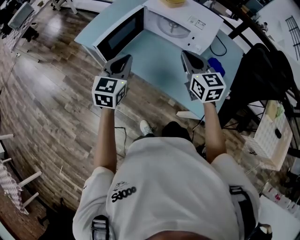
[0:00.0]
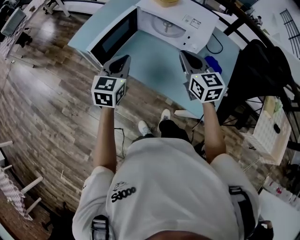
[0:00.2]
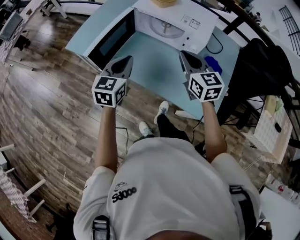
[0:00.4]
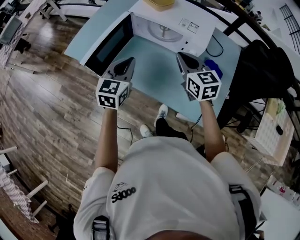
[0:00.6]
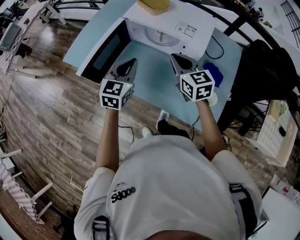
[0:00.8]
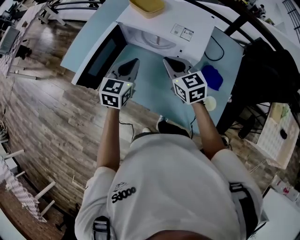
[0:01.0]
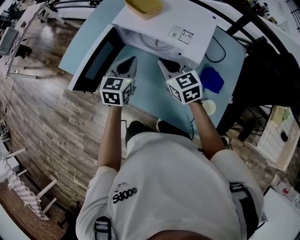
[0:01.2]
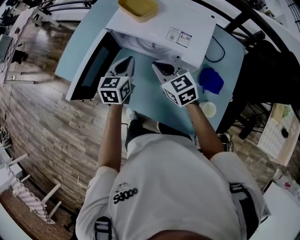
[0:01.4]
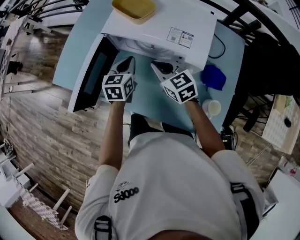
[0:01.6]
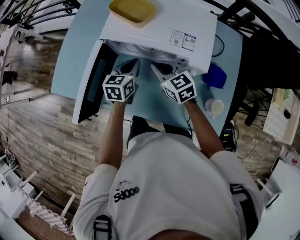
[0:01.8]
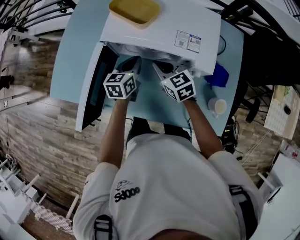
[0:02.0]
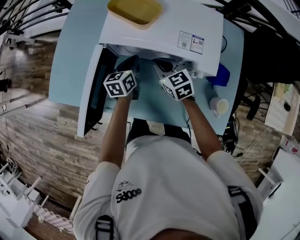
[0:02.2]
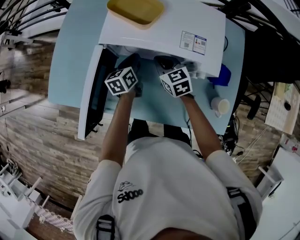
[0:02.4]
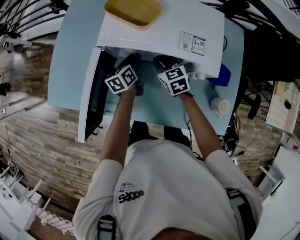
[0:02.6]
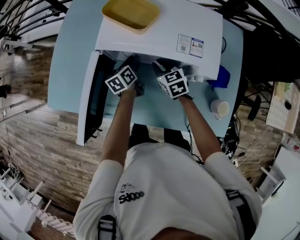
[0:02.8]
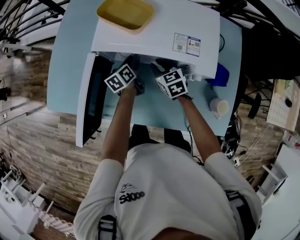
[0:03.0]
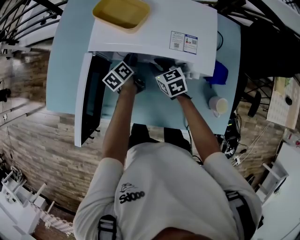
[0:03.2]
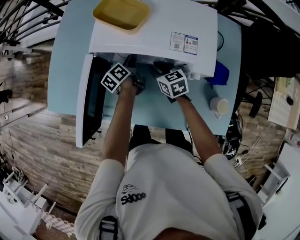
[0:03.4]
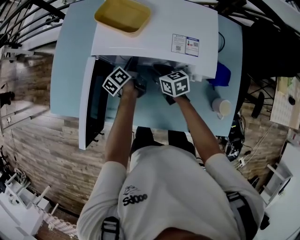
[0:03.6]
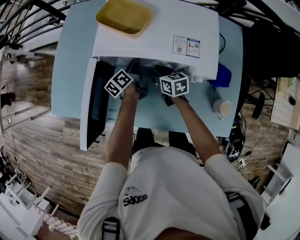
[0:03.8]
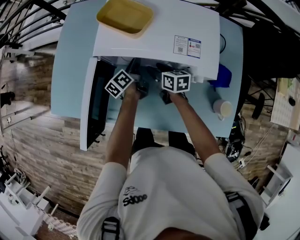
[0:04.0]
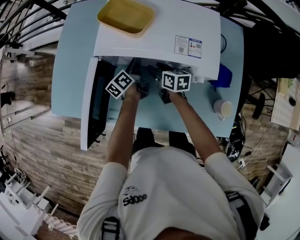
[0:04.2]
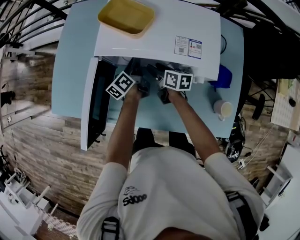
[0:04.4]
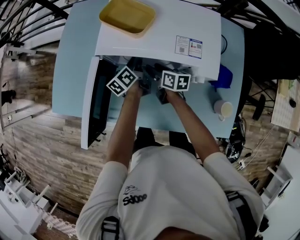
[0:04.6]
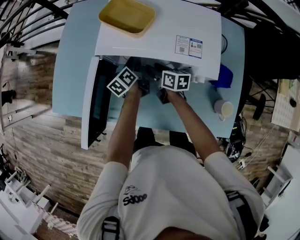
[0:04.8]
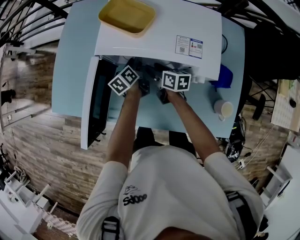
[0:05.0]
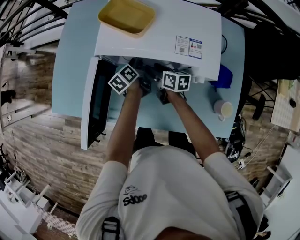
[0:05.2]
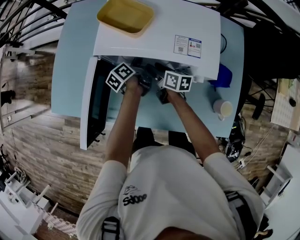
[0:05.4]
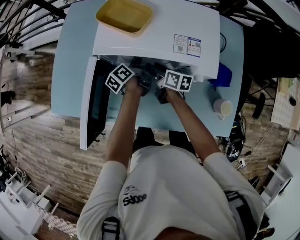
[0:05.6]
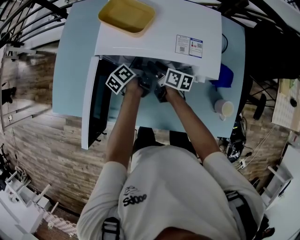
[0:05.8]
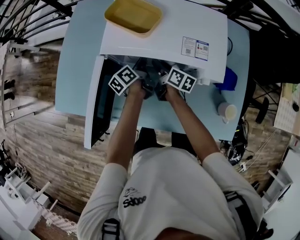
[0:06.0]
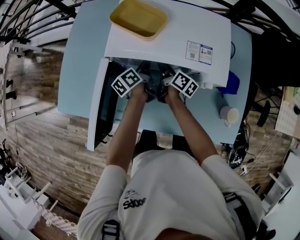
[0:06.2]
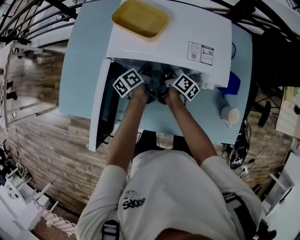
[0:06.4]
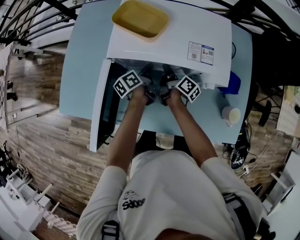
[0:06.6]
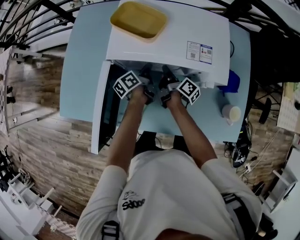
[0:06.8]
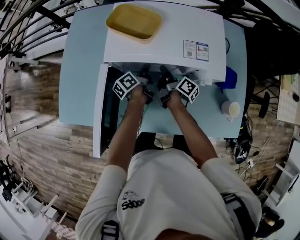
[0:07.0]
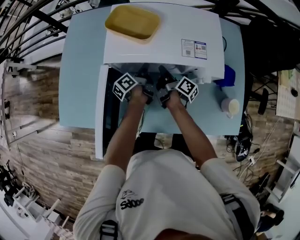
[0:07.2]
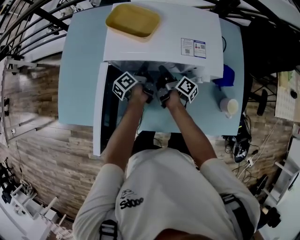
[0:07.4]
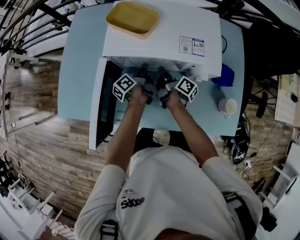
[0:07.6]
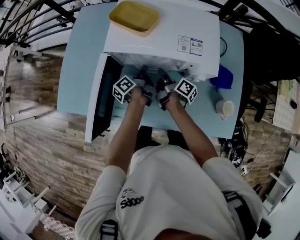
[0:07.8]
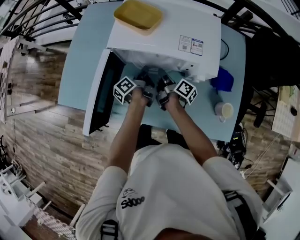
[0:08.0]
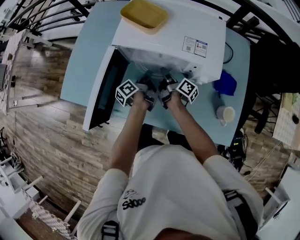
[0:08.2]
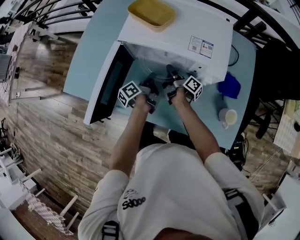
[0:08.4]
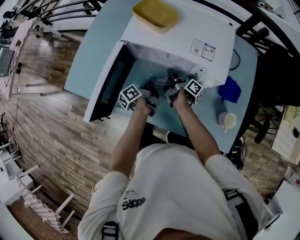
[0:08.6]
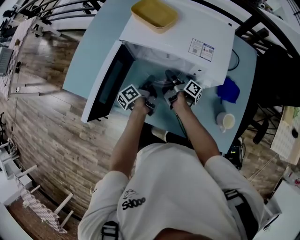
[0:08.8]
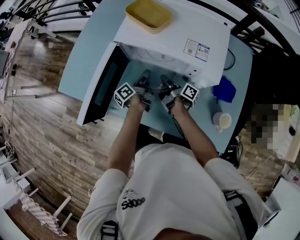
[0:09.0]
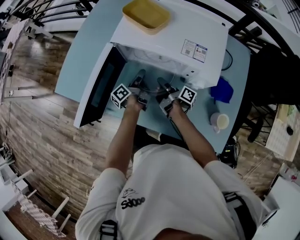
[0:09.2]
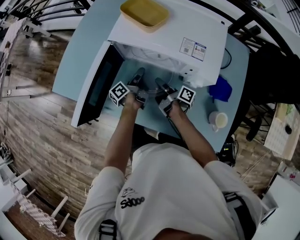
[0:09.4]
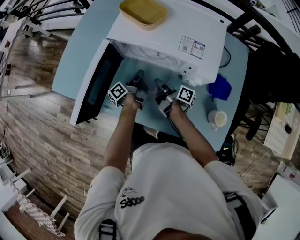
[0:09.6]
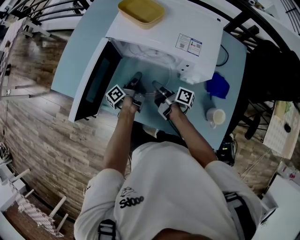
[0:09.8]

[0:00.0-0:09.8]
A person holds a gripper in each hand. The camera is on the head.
0:00.0 to 0:01.4: The right gripper shifts roughly 20 cm forward and downward; the left gripper heads forward and to the right, covering roughly 25 cm.
0:01.4 to 0:02.8: The two grippers go roughly 20 cm downward and forward. The left gripper changes its angle by about 30 degrees, and opens, while the right gripper rotates about 20 degrees.
0:02.8 to 0:04.2: The right gripper rotates about 40 degrees, and opens. Meanwhile the left gripper rotates approximately 20 degrees.
0:04.2 to 0:05.6: There are only small adjustments of the grippers.
0:05.6 to 0:07.0: The right gripper swivels some 40 degrees, and closes its fingers.
0:07.0 to 0:08.4: The left gripper shifts about 10 cm backward.
0:08.4 to 0:09.8: The right gripper shifts about 10 cm backward, and swivels roughly 20 degrees; the left gripper opens, then closes once more.

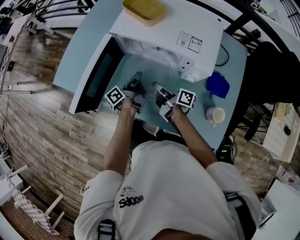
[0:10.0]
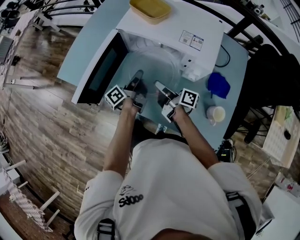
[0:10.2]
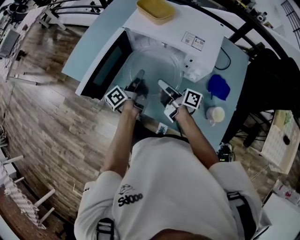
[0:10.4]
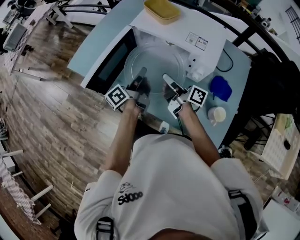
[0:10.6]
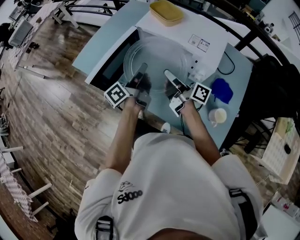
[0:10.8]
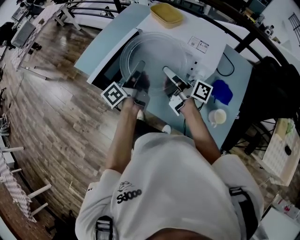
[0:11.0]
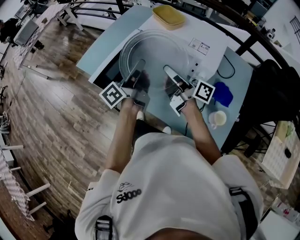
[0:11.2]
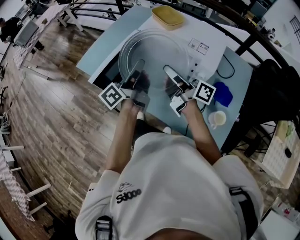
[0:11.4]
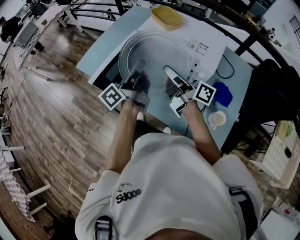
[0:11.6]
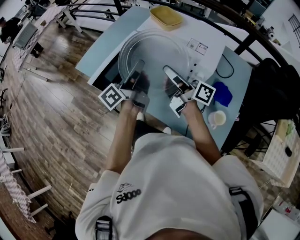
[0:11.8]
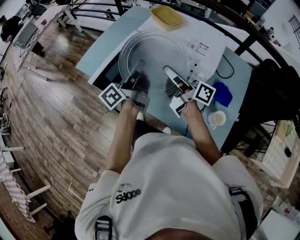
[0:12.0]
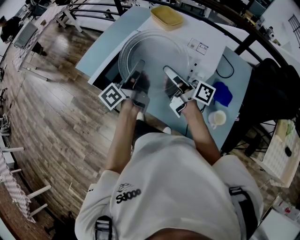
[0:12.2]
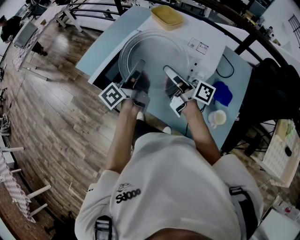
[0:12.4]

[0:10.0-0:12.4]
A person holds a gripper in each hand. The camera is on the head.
0:10.0 to 0:11.2: The right gripper is displaced upward by some 20 cm, and rotates approximately 20 degrees. The left gripper heads upward and backward, covering about 25 cm, and changes its angle by some 30 degrees.
0:11.2 to 0:12.4: The grippers stay close to where they were, moving slightly.

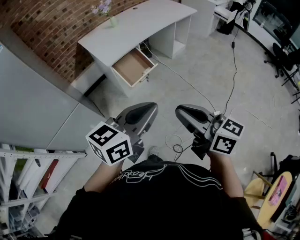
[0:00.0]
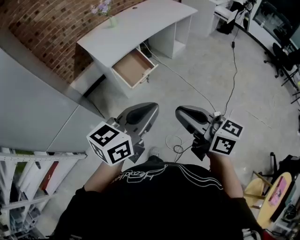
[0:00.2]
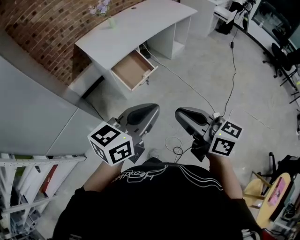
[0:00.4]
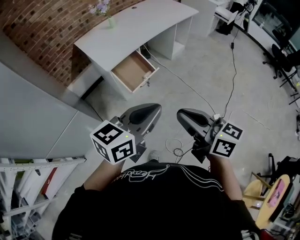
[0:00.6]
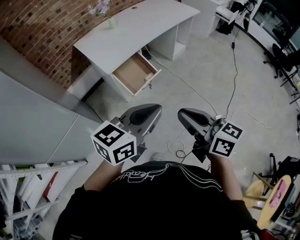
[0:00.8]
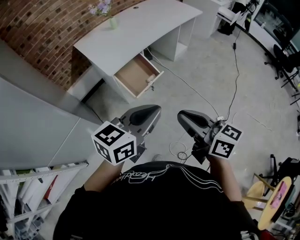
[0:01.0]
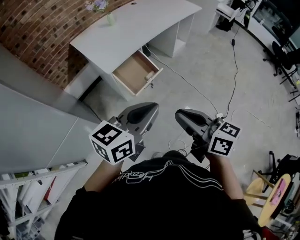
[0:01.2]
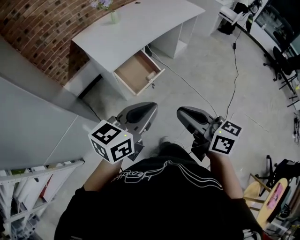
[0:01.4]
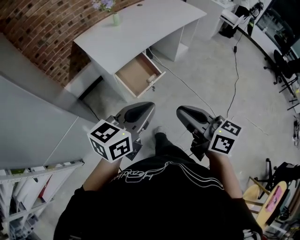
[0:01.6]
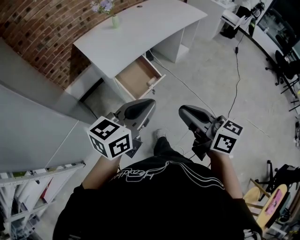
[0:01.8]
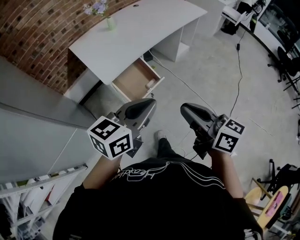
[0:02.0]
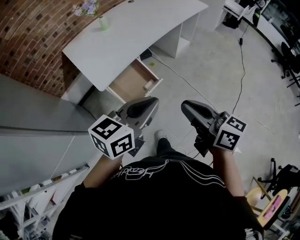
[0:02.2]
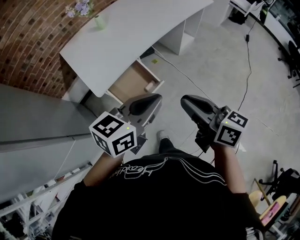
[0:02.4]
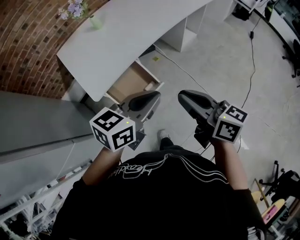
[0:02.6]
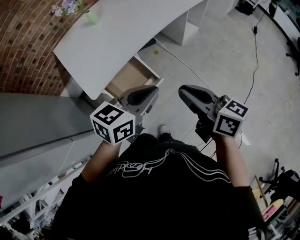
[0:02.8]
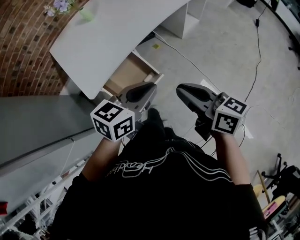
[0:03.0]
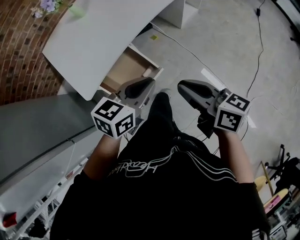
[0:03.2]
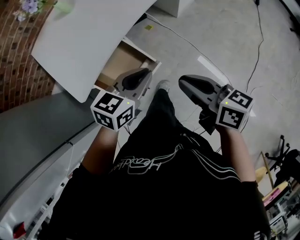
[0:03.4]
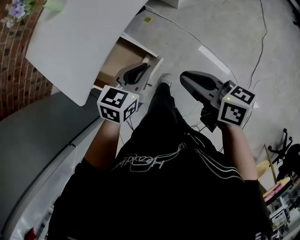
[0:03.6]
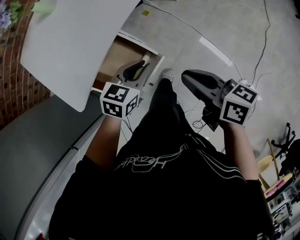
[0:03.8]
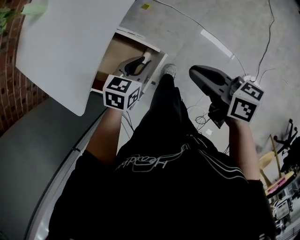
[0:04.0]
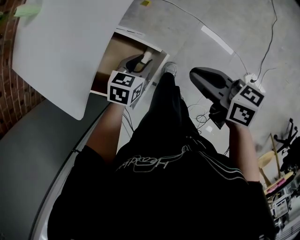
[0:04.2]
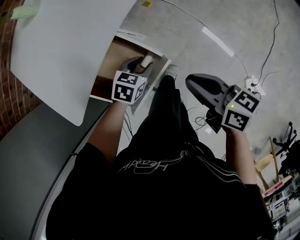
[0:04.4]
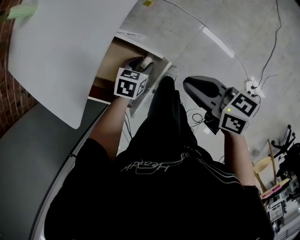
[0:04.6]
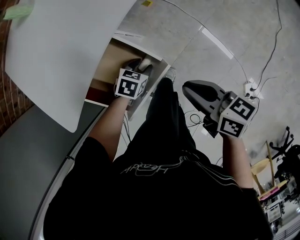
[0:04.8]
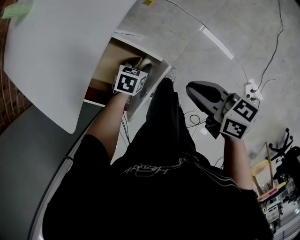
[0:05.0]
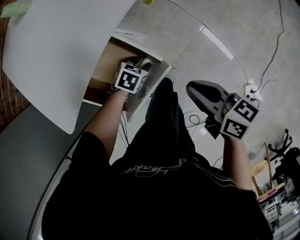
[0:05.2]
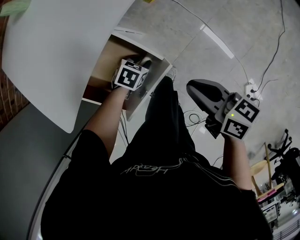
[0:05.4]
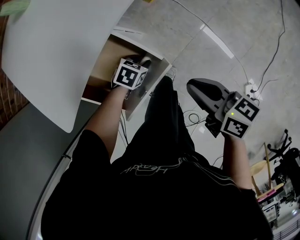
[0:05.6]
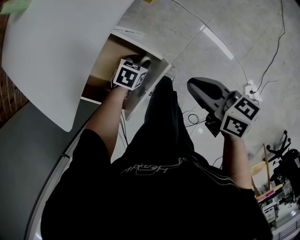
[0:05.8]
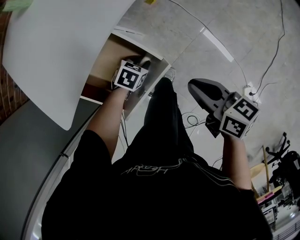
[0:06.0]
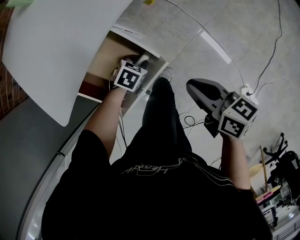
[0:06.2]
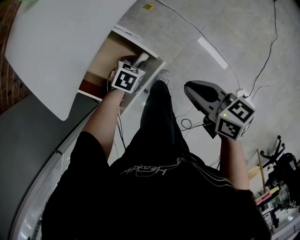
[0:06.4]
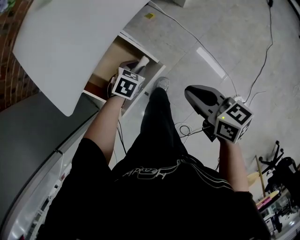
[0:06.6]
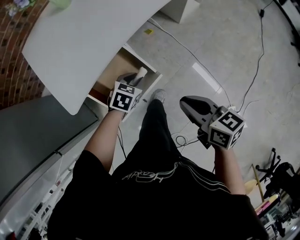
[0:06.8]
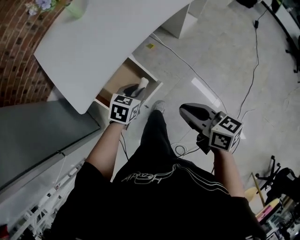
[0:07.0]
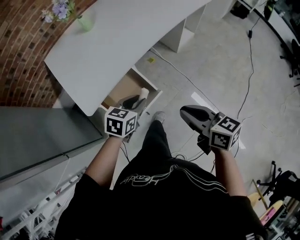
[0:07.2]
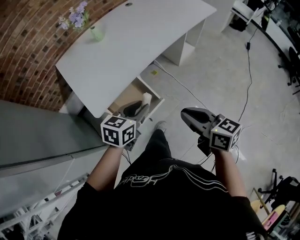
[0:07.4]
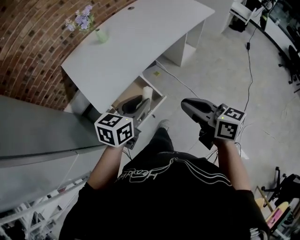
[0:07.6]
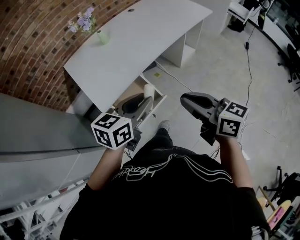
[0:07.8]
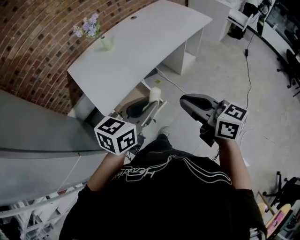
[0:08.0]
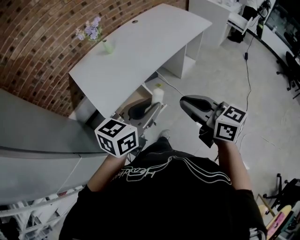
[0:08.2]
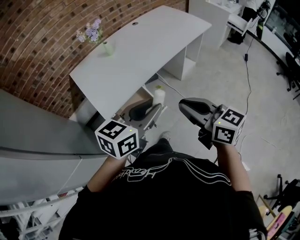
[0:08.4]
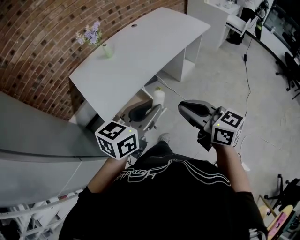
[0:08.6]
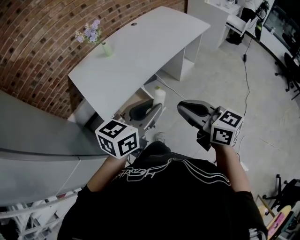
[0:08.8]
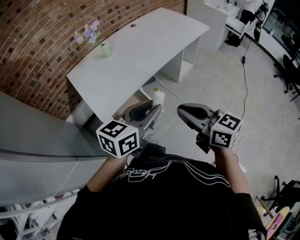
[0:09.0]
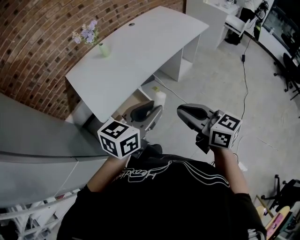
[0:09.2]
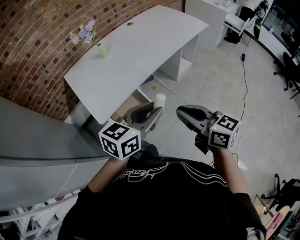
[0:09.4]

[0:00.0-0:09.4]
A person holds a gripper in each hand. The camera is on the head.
0:00.0 to 0:01.6: The grippers both shift forward and to the left by approximately 20 cm.
0:01.6 to 0:03.2: The two grippers go some 40 cm forward and downward.
0:03.2 to 0:04.8: The left gripper goes about 40 cm downward, tips its fingers downward by about 40 degrees, and opens up; the right gripper shifts some 25 cm downward.
0:04.8 to 0:06.2: The grippers stay close to where they were, moving slightly.
0:06.2 to 0:07.8: The grippers both shift upward by approximately 50 cm. The right gripper changes its angle by some 30 degrees; the left gripper tips its fingers upward by approximately 50 degrees.
0:07.8 to 0:09.4: The left gripper ends up approximately 5 cm from where it was.

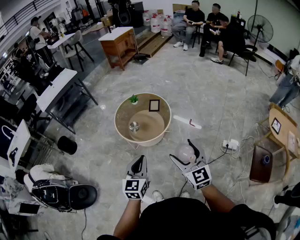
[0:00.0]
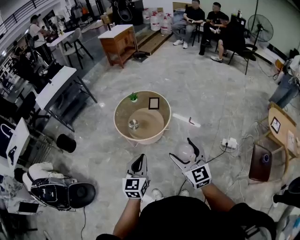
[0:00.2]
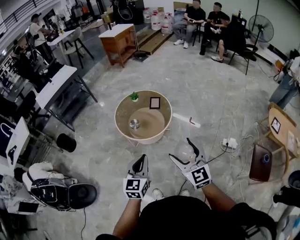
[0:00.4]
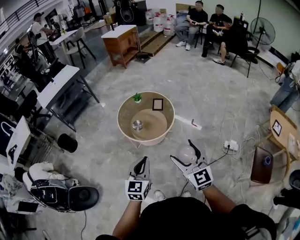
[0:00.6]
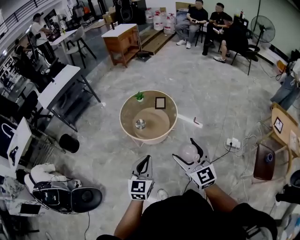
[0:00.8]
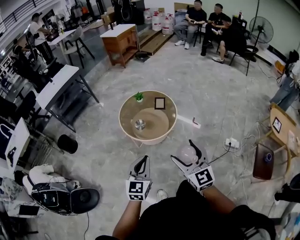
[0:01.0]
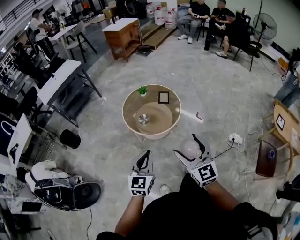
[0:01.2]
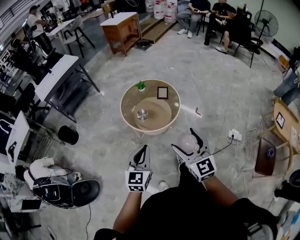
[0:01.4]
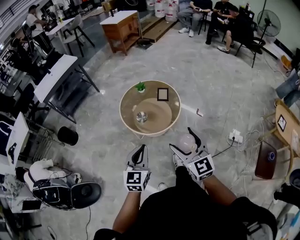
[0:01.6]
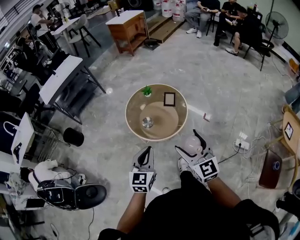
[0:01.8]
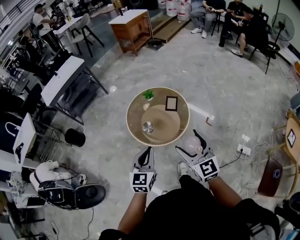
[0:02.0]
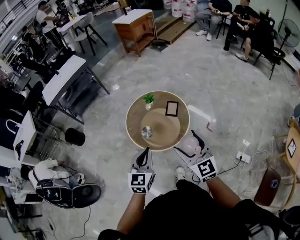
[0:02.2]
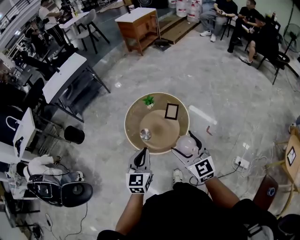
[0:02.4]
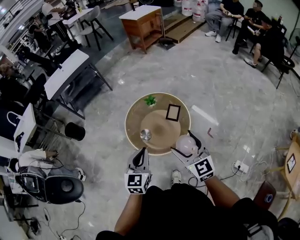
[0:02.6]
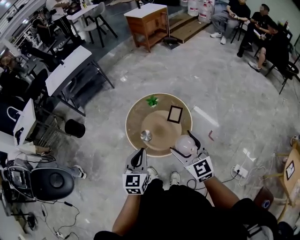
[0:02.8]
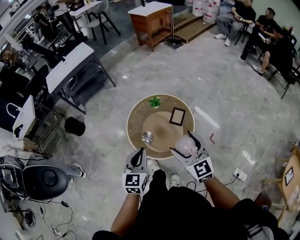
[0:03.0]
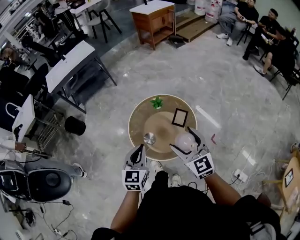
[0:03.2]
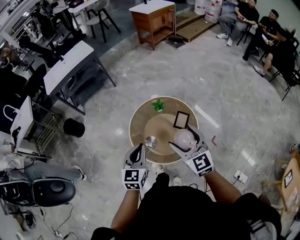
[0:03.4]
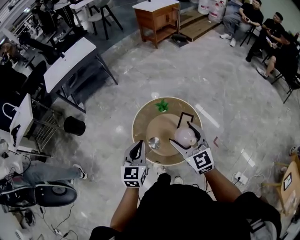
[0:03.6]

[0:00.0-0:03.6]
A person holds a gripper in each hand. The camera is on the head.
0:00.0 to 0:01.8: The two grippers go some 15 cm forward.
0:01.8 to 0:03.6: The two grippers go some 30 cm forward.
